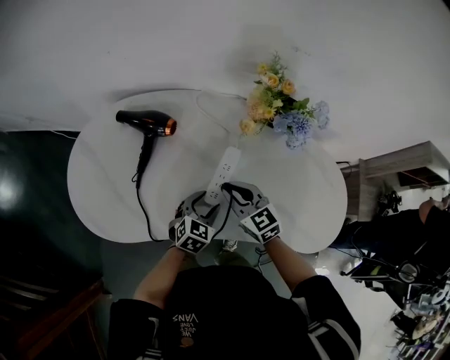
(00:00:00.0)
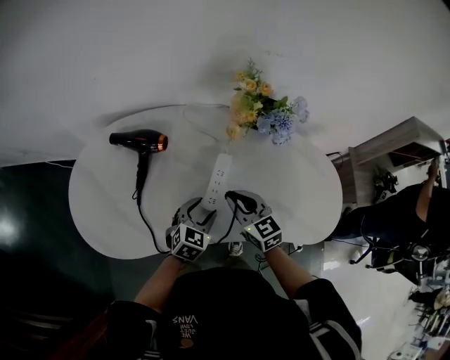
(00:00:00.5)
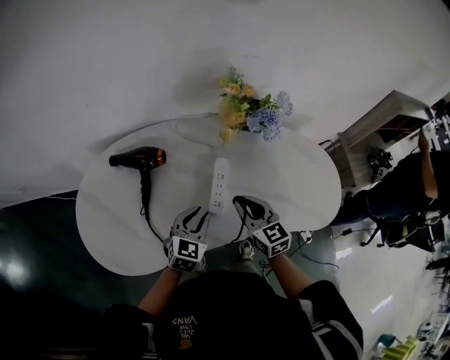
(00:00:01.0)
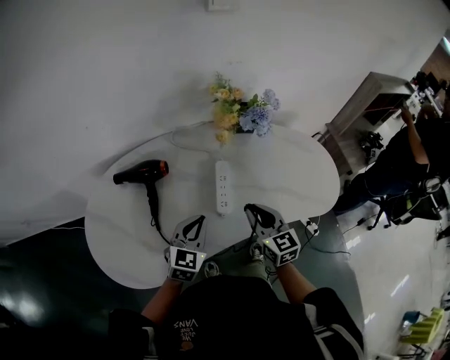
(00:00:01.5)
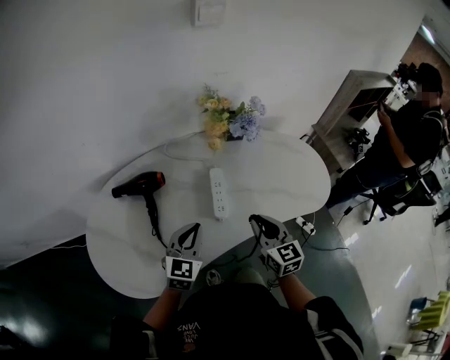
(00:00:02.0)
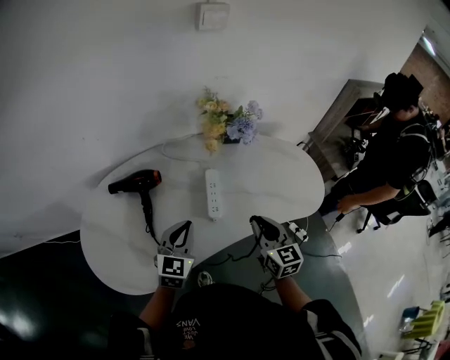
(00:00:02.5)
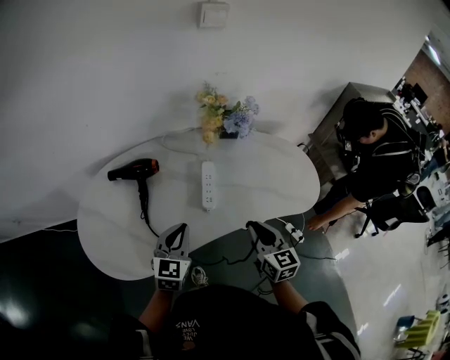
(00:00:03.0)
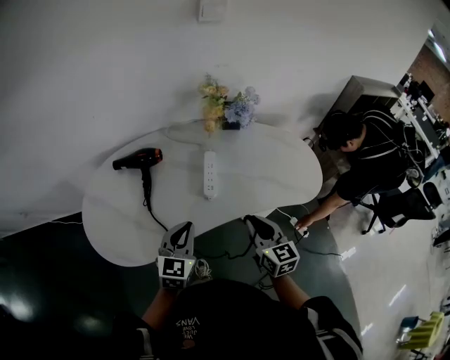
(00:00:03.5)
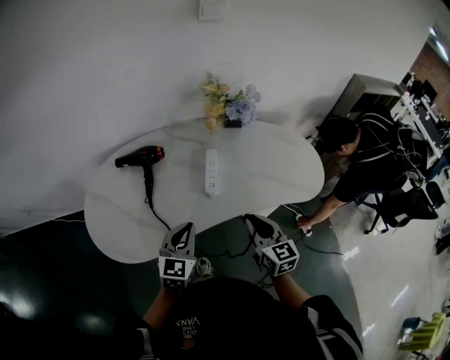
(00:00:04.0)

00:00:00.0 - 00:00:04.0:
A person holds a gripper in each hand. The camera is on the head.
00:00:00.0 - 00:00:02.0: The left gripper goes roughly 15 cm upward, swivels roughly 30 degrees, and closes its fingers. The right gripper changes place by roughly 15 cm, and changes its angle by approximately 50 degrees.
00:00:02.0 - 00:00:04.0: The two grippers go about 10 cm backward.

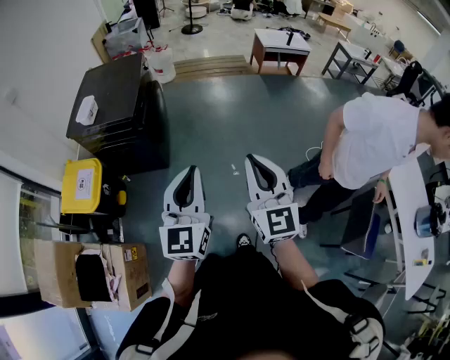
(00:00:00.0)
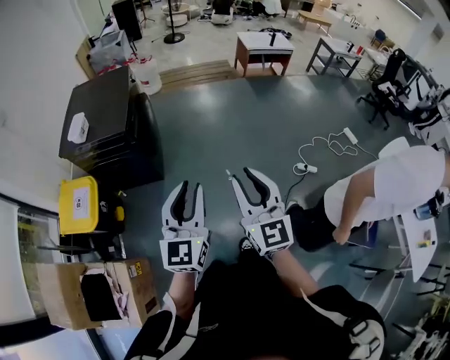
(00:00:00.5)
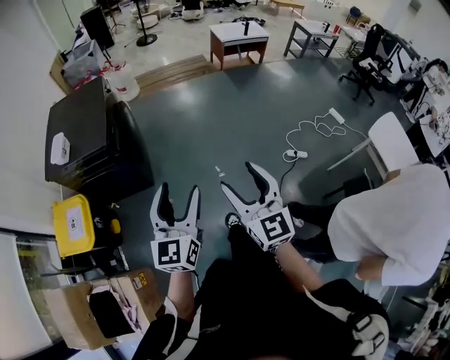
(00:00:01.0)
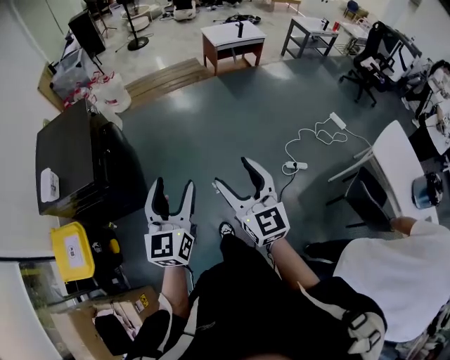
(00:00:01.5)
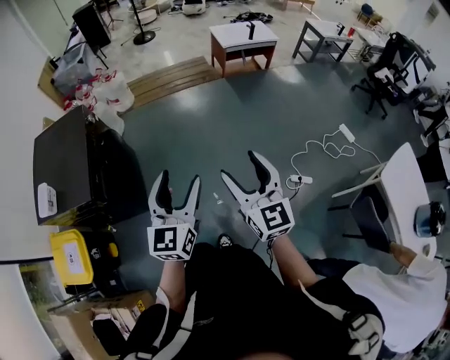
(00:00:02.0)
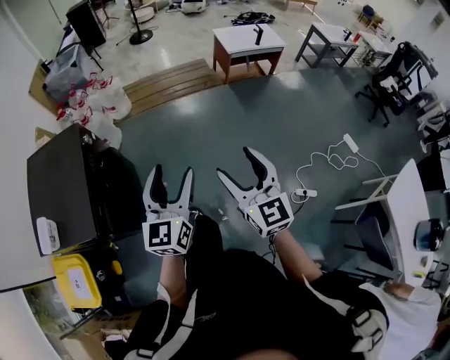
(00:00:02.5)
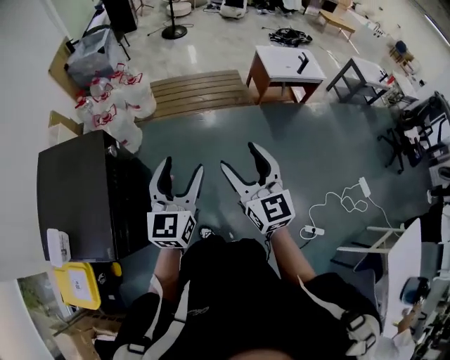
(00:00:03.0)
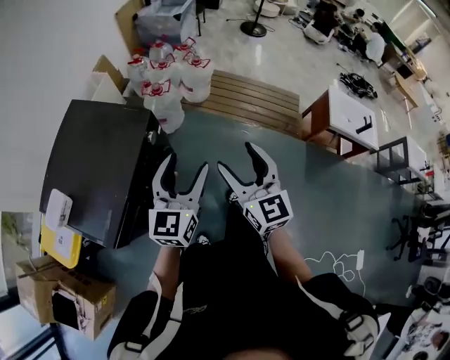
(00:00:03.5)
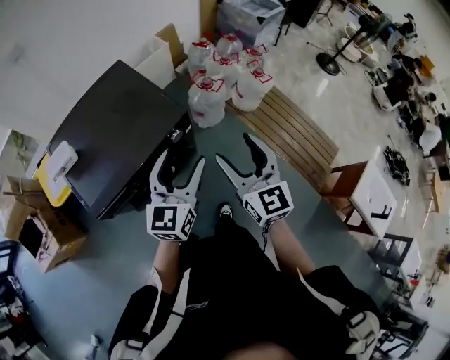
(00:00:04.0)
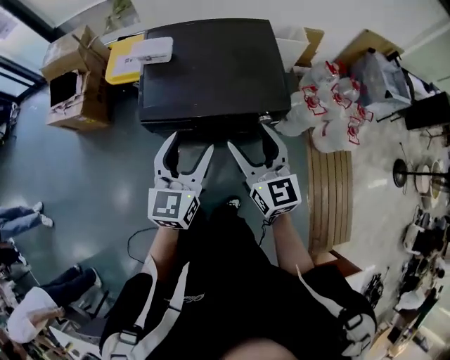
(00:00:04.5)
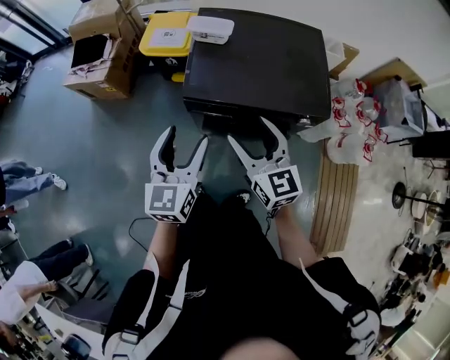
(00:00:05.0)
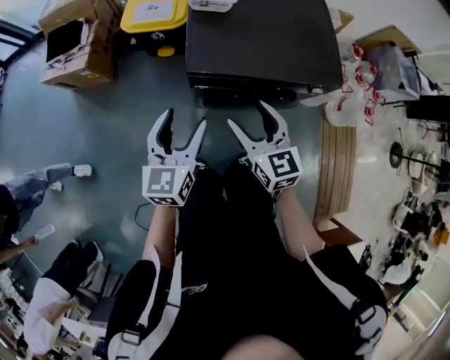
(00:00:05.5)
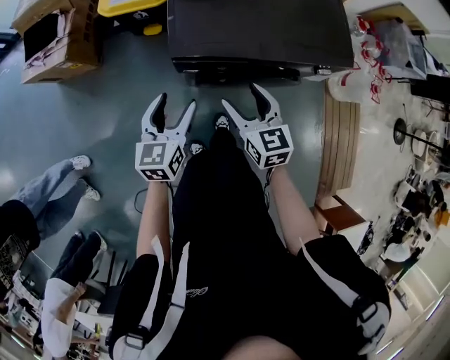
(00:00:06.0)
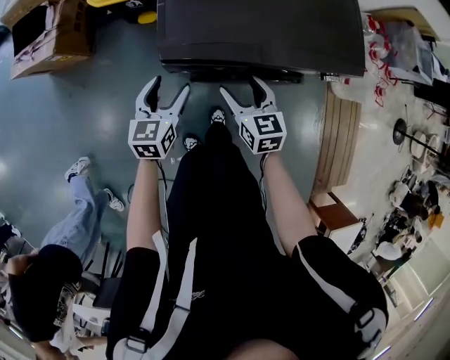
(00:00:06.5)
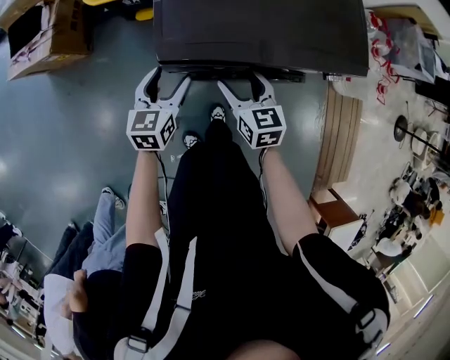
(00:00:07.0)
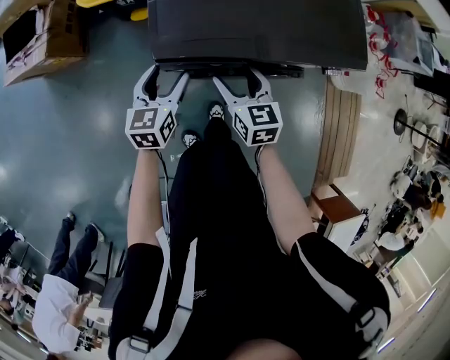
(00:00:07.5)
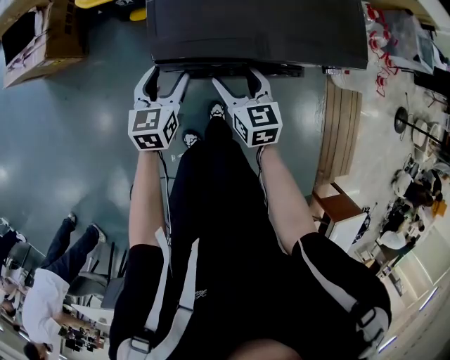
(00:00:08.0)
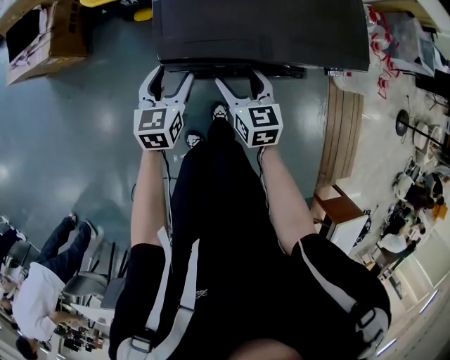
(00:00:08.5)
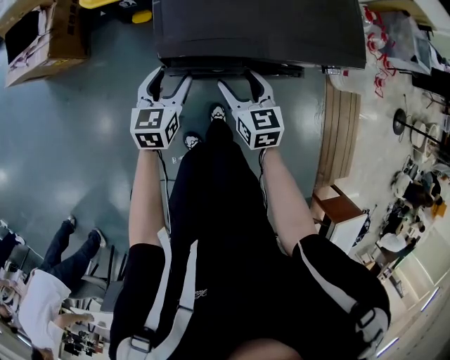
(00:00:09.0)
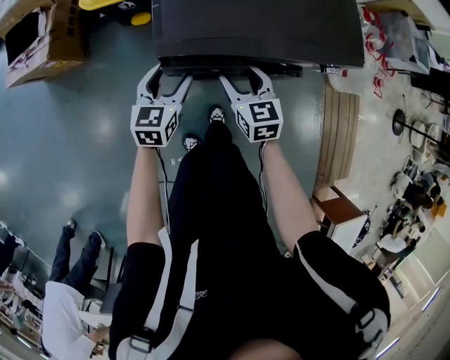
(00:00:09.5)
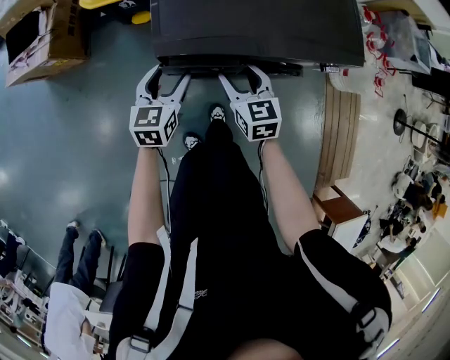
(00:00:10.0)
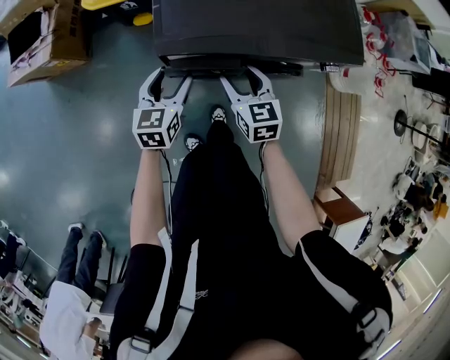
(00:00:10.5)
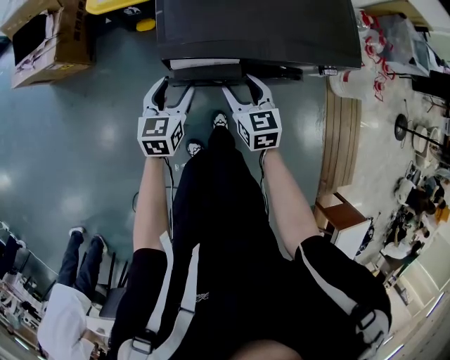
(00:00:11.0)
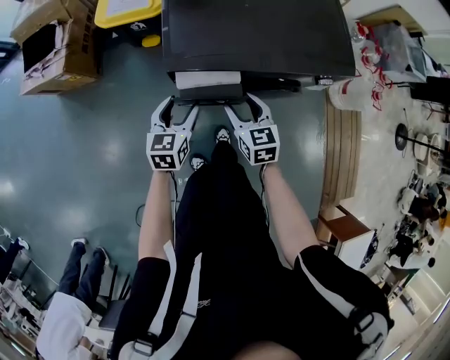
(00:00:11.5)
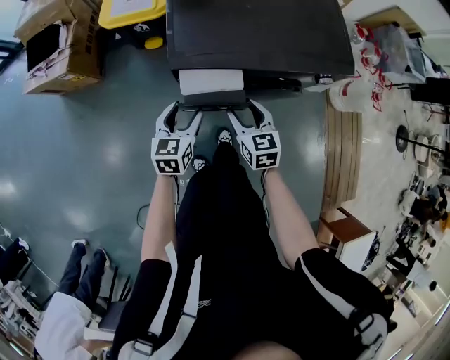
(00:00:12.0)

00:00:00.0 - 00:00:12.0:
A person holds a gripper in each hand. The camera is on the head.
00:00:00.0 - 00:00:02.0: The right gripper shifts about 35 cm forward and to the right, and opens; the left gripper heads forward, covering some 35 cm, and opens its fingers.
00:00:02.0 - 00:00:04.0: The two grippers travel together, approximately 80 cm. The left gripper rotates roughly 60 degrees, while the right gripper turns by about 60 degrees.
00:00:04.0 - 00:00:06.0: The two grippers travel together, some 40 cm. The left gripper turns by roughly 40 degrees, while the right gripper turns by about 40 degrees.
00:00:06.0 - 00:00:08.0: Both grippers move downward and forward, approximately 15 cm.
00:00:08.0 - 00:00:10.0: The grippers move only a little.
00:00:10.0 - 00:00:12.0: The grippers both shift backward by roughly 10 cm.

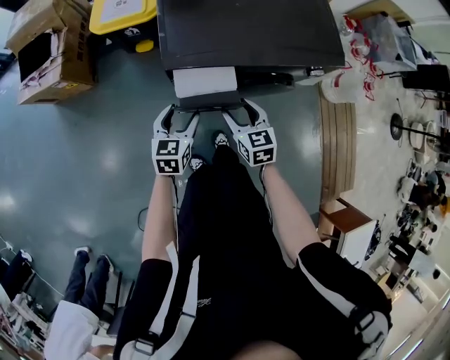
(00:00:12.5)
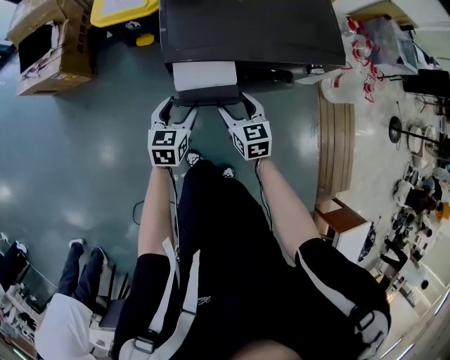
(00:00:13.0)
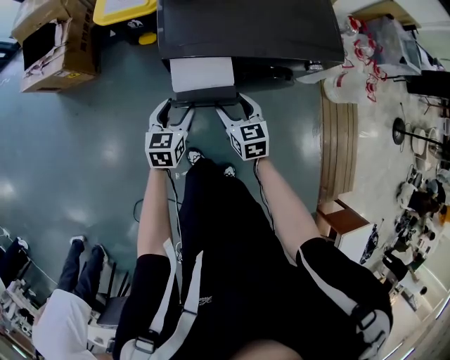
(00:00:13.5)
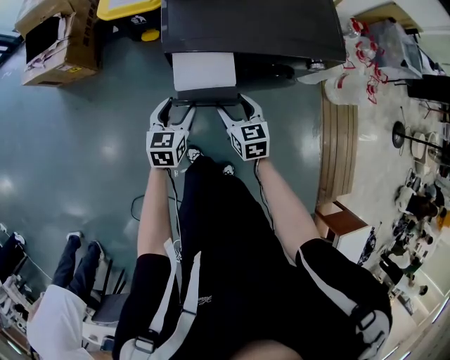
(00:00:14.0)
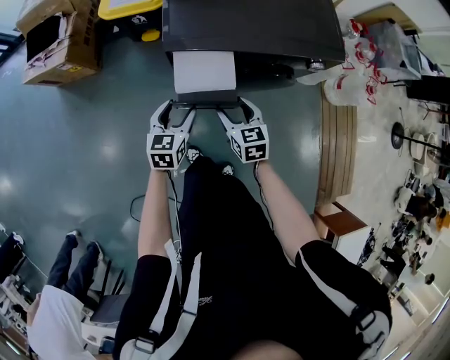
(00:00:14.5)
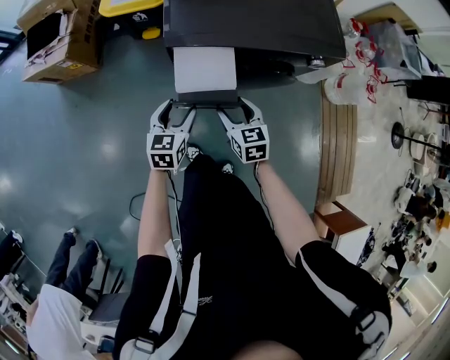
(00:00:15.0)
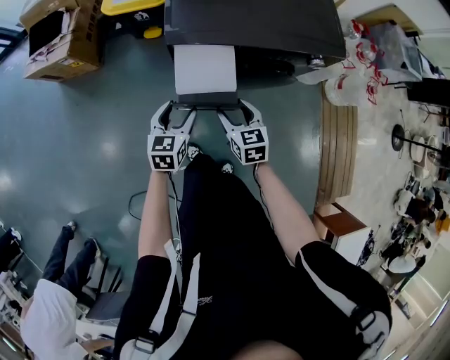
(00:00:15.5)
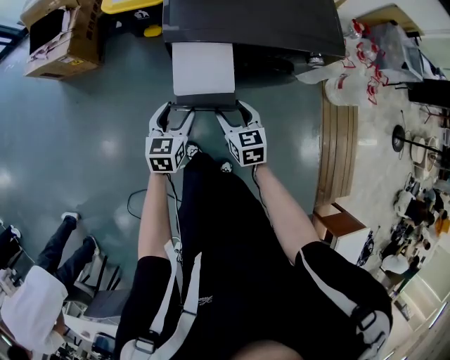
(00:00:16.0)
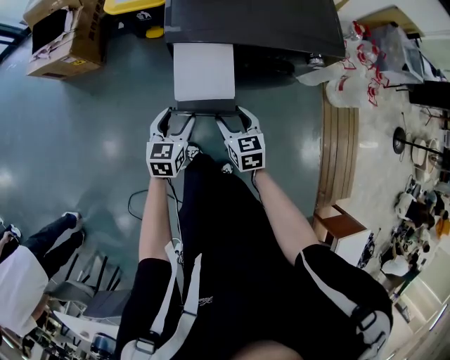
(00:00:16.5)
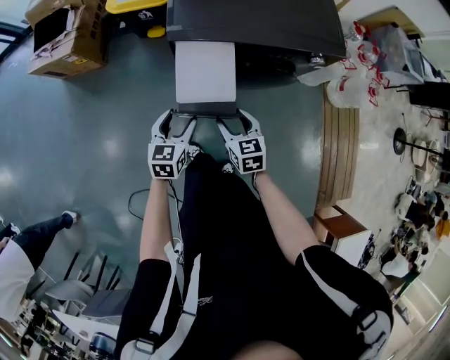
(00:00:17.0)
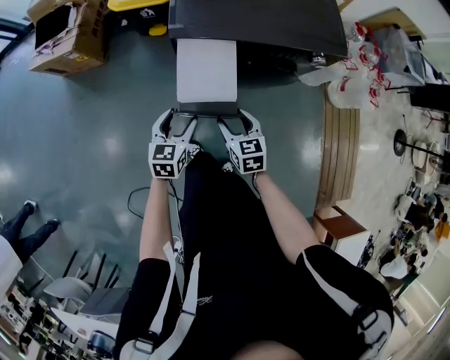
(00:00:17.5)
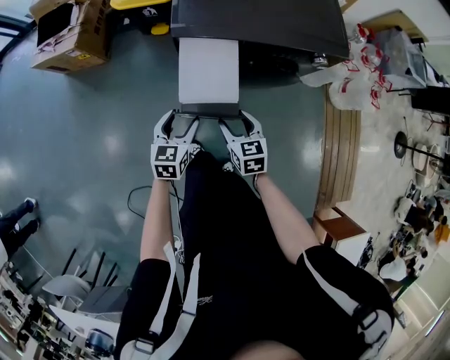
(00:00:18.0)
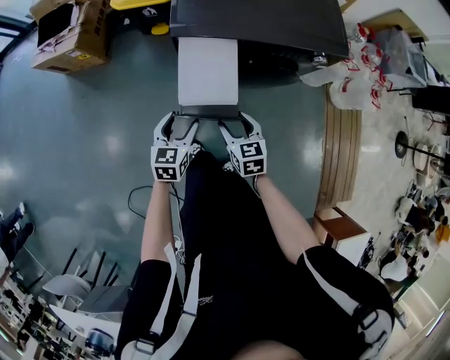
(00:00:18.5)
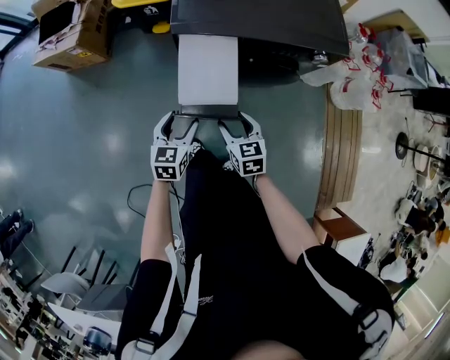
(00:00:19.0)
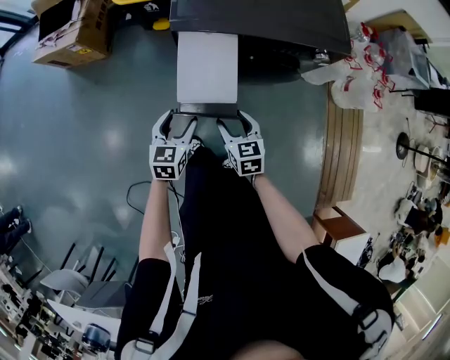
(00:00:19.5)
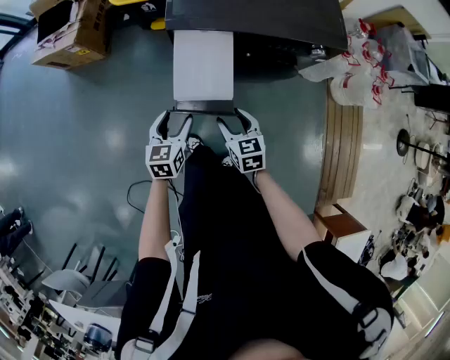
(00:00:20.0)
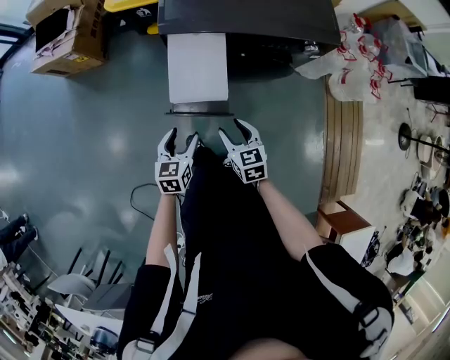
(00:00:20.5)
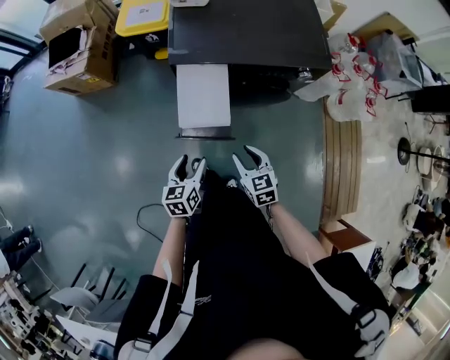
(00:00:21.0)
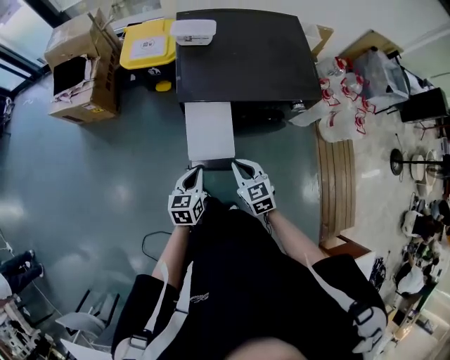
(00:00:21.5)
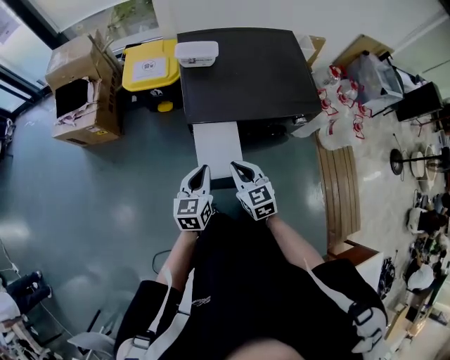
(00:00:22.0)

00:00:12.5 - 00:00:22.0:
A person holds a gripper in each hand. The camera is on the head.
00:00:12.5 - 00:00:14.5: The grippers stay close to where they were, moving slightly.
00:00:14.5 - 00:00:16.5: The two grippers go about 5 cm backward.
00:00:16.5 - 00:00:20.0: The grippers stay close to where they were, moving slightly.
00:00:20.0 - 00:00:22.0: The grippers both shift upward and forward by roughly 20 cm. The right gripper closes. The left gripper closes its fingers.

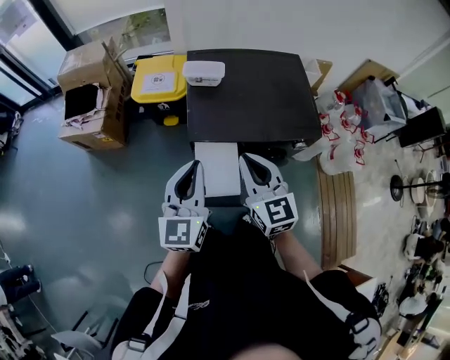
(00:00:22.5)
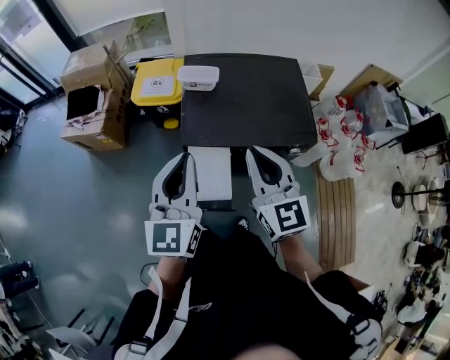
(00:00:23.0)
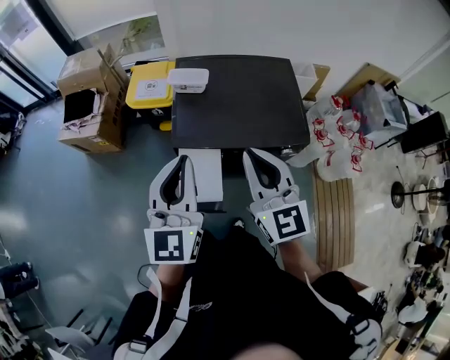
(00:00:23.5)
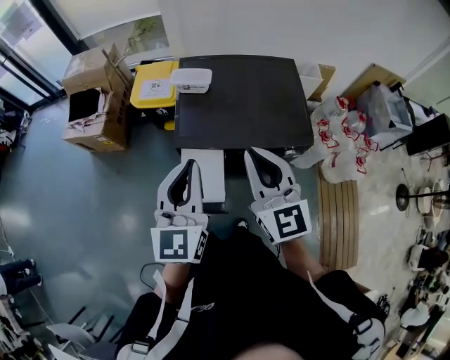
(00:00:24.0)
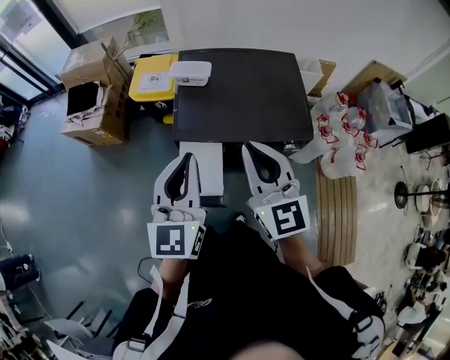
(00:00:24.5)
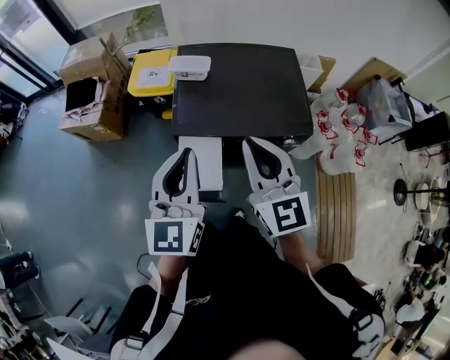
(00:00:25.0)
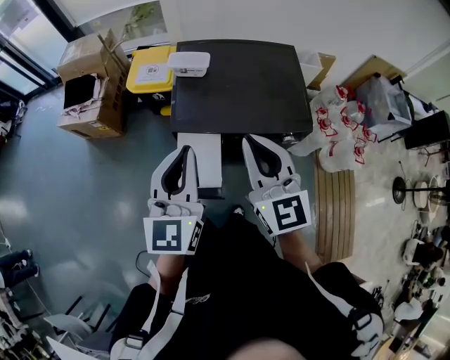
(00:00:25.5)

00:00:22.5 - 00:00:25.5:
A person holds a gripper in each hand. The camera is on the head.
00:00:22.5 - 00:00:24.0: The right gripper heads upward and to the right, covering some 10 cm; the left gripper shifts some 10 cm to the right and upward.
00:00:24.0 - 00:00:25.5: The two grippers keep their place.
